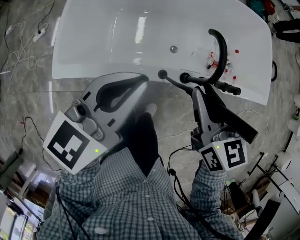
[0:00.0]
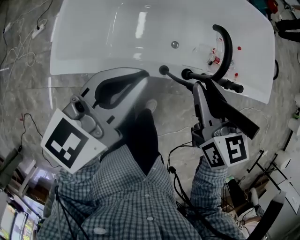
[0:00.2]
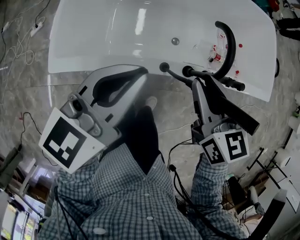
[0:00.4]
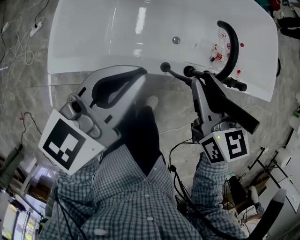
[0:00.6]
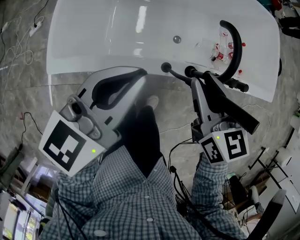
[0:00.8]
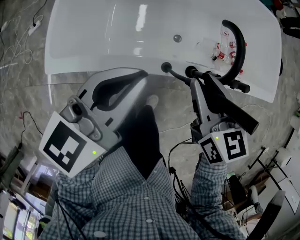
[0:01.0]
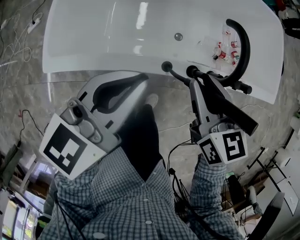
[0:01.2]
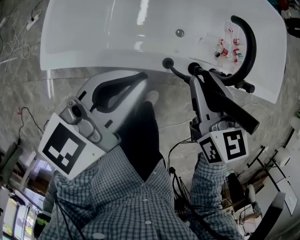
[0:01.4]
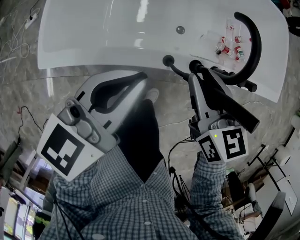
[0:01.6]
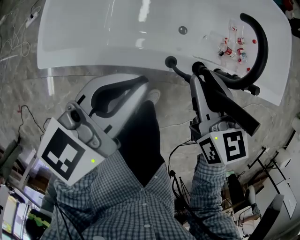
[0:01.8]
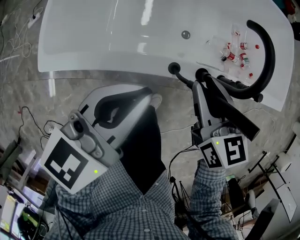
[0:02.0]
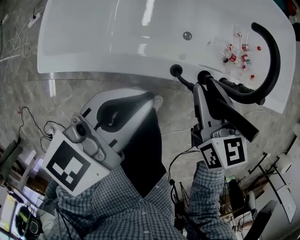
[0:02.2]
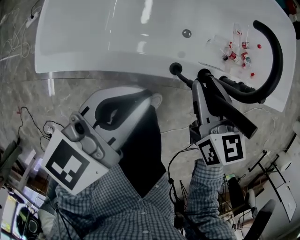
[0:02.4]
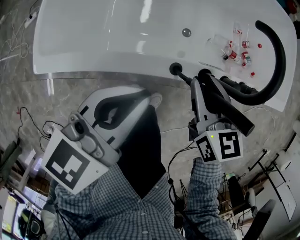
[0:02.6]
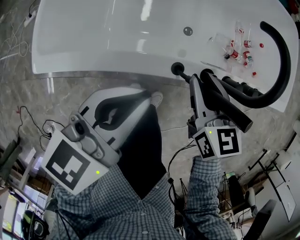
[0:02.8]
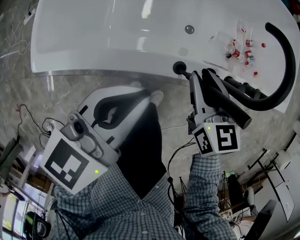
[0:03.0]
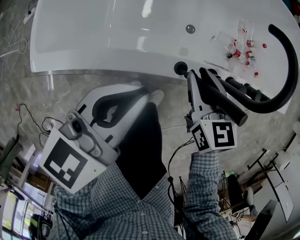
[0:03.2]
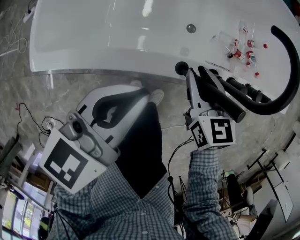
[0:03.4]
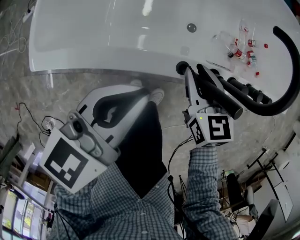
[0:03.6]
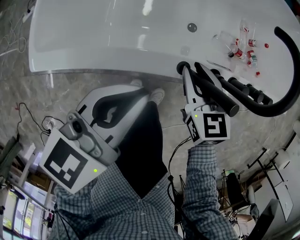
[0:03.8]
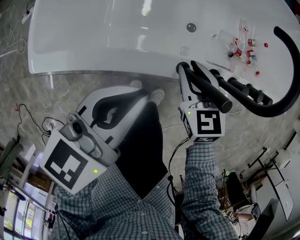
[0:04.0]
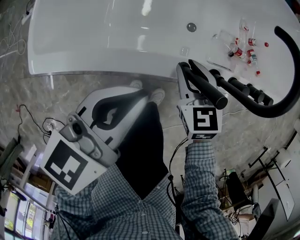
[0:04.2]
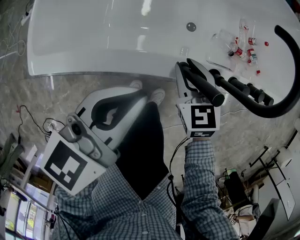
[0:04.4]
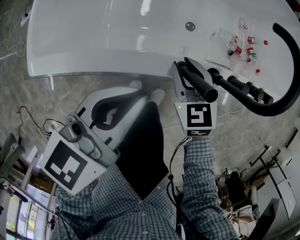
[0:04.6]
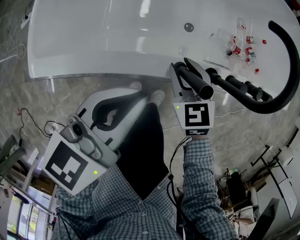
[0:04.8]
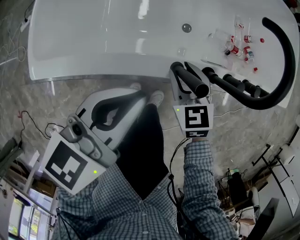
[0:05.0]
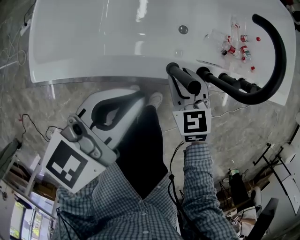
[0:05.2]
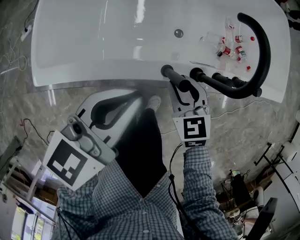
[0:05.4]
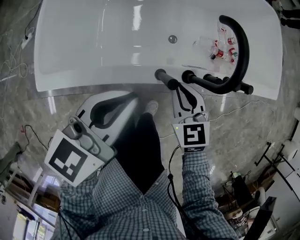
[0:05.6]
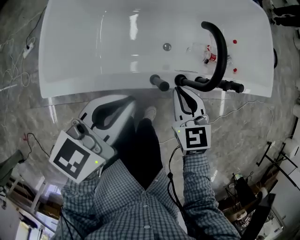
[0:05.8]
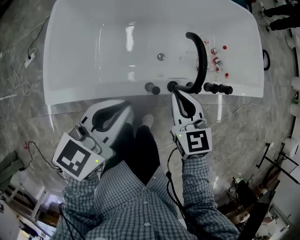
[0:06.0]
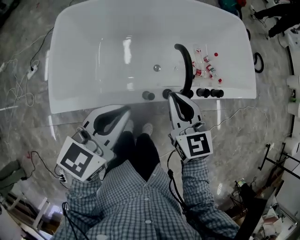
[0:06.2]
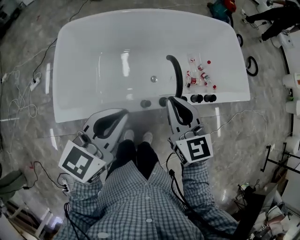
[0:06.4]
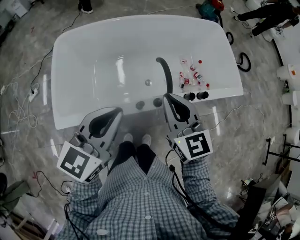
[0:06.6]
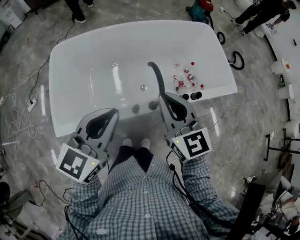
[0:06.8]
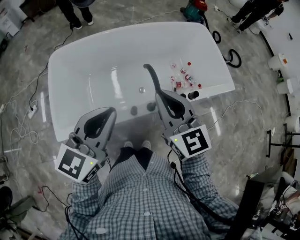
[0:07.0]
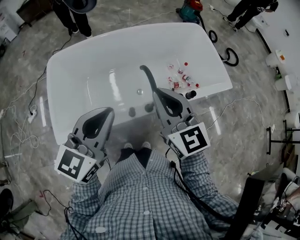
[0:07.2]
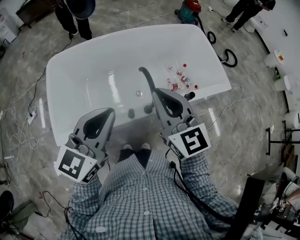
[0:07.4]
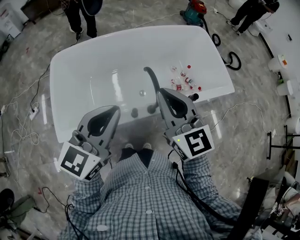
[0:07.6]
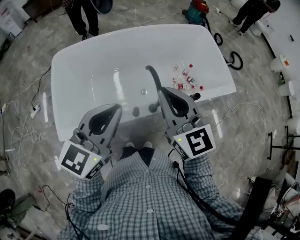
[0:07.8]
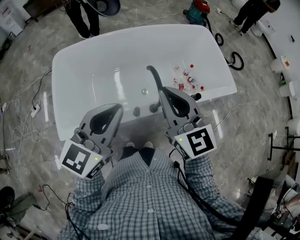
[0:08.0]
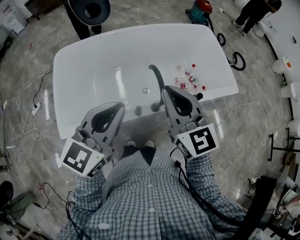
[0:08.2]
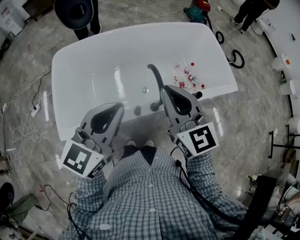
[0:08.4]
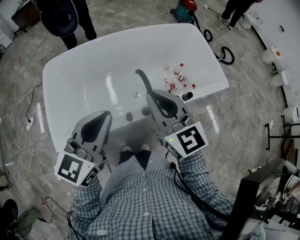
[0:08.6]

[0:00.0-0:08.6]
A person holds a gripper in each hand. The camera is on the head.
0:00.0 to 0:01.4: The two grippers go roughly 10 cm downward.
0:01.4 to 0:02.8: Both grippers travel together downward, roughly 10 cm.
0:02.8 to 0:04.4: The right gripper travels downward by approximately 10 cm.
0:04.4 to 0:05.8: The right gripper travels upward and to the right by approximately 15 cm; the left gripper moves upward, some 10 cm.
0:05.8 to 0:07.2: Both grippers move upward, some 30 cm. The right gripper swivels approximately 30 degrees.
0:07.2 to 0:08.6: The grippers make only small movements.

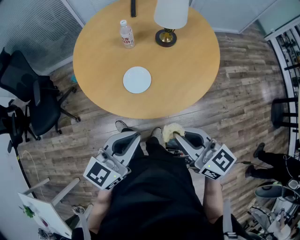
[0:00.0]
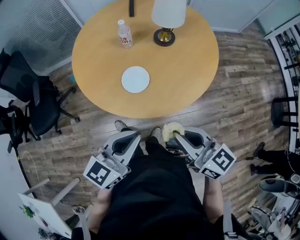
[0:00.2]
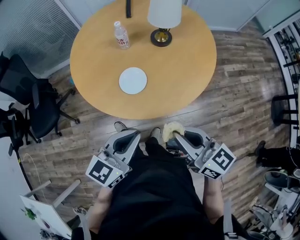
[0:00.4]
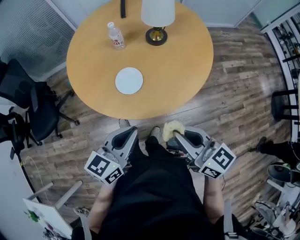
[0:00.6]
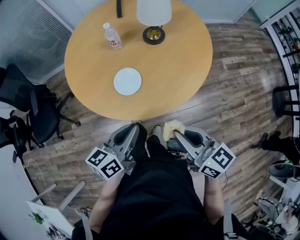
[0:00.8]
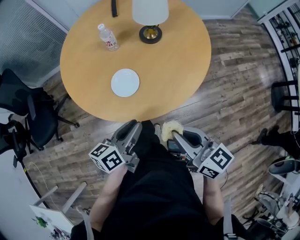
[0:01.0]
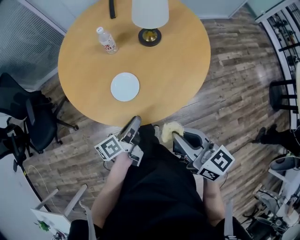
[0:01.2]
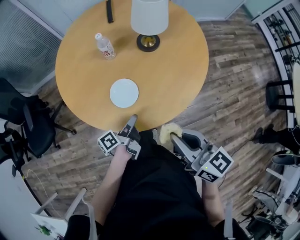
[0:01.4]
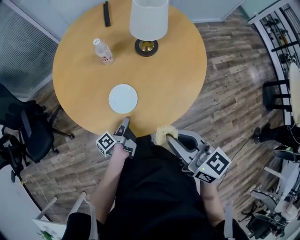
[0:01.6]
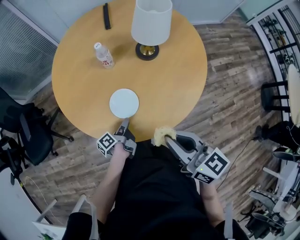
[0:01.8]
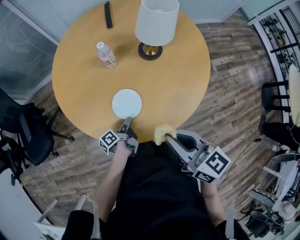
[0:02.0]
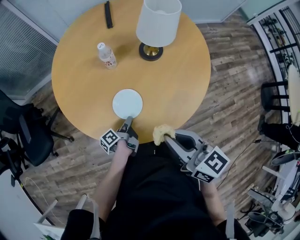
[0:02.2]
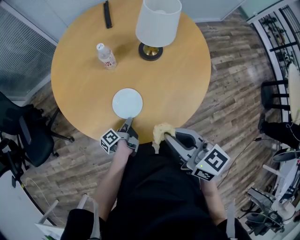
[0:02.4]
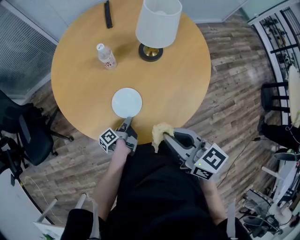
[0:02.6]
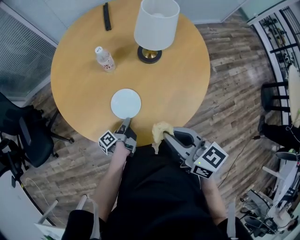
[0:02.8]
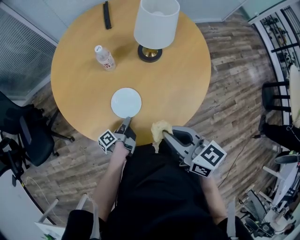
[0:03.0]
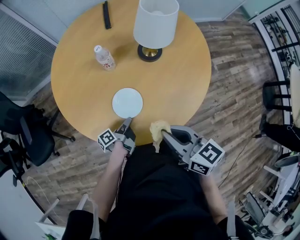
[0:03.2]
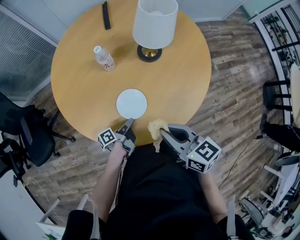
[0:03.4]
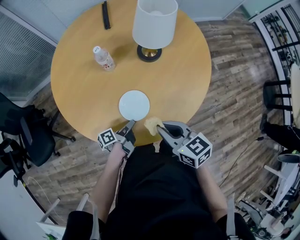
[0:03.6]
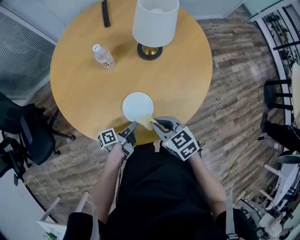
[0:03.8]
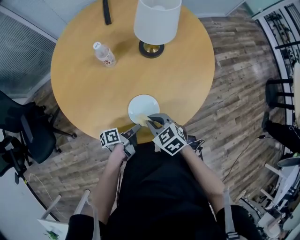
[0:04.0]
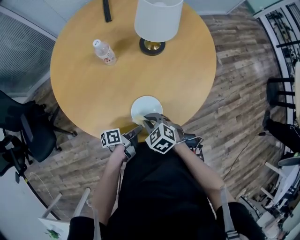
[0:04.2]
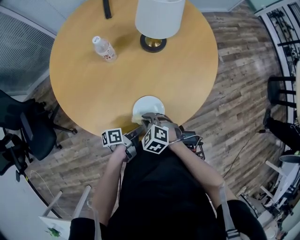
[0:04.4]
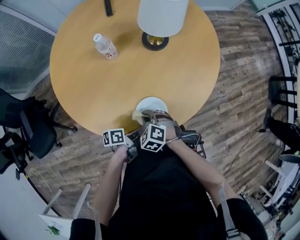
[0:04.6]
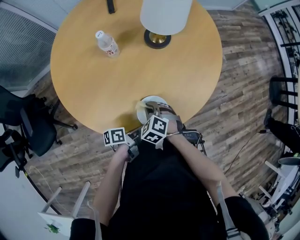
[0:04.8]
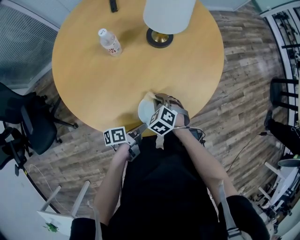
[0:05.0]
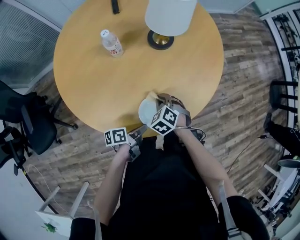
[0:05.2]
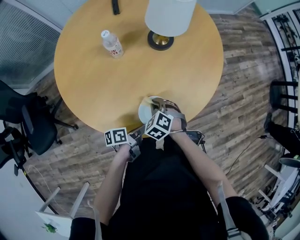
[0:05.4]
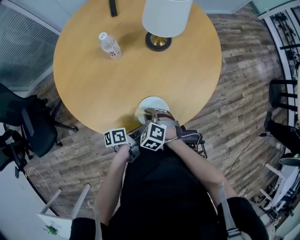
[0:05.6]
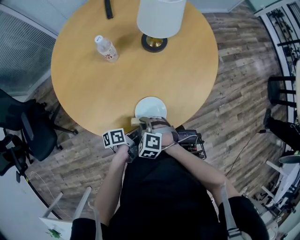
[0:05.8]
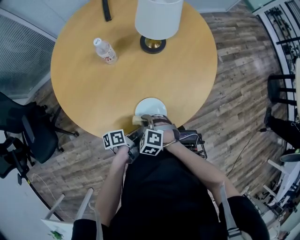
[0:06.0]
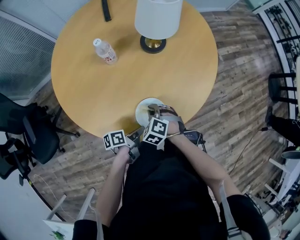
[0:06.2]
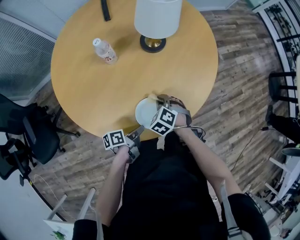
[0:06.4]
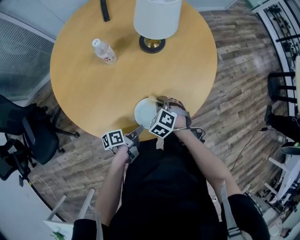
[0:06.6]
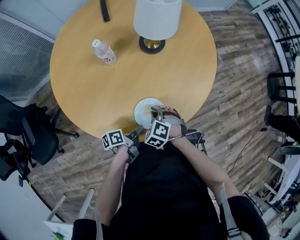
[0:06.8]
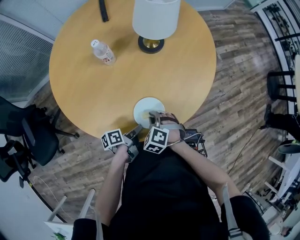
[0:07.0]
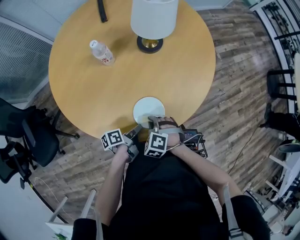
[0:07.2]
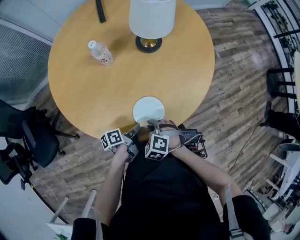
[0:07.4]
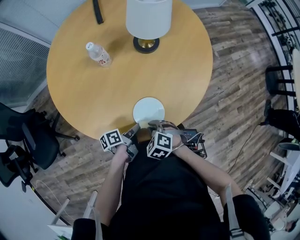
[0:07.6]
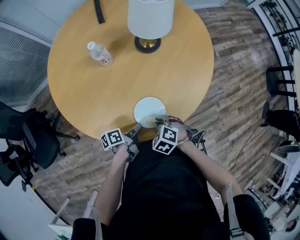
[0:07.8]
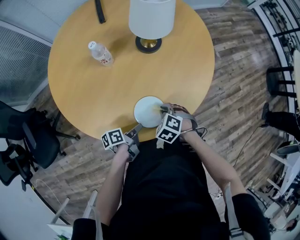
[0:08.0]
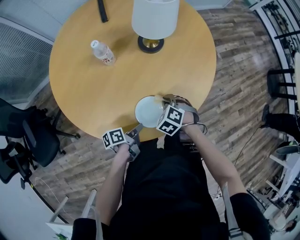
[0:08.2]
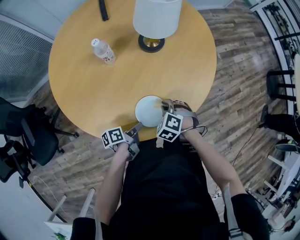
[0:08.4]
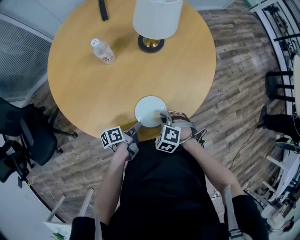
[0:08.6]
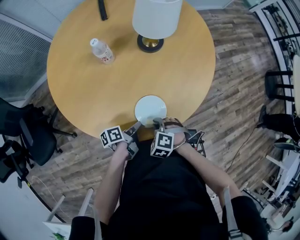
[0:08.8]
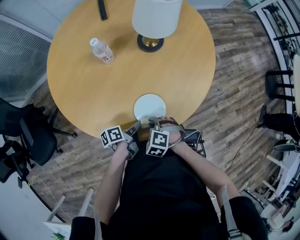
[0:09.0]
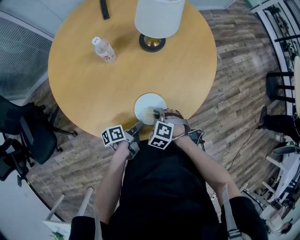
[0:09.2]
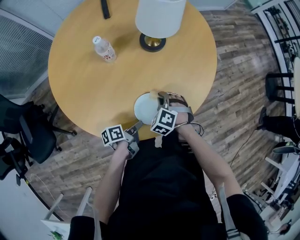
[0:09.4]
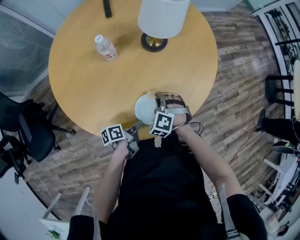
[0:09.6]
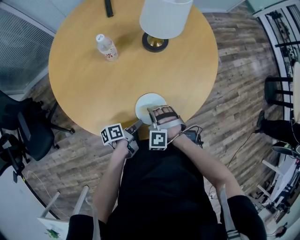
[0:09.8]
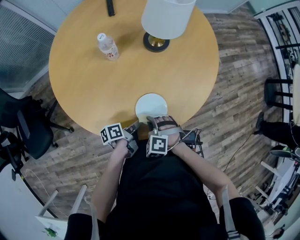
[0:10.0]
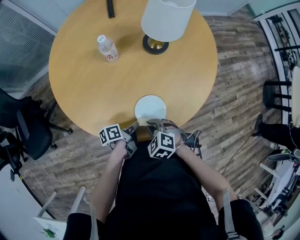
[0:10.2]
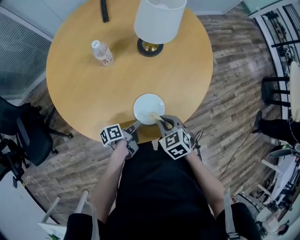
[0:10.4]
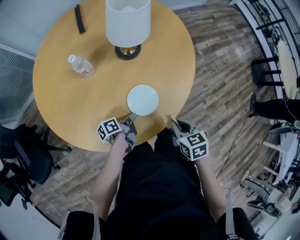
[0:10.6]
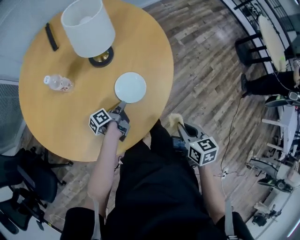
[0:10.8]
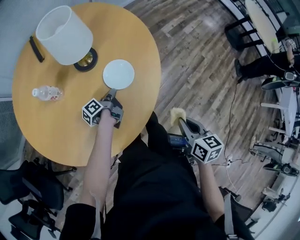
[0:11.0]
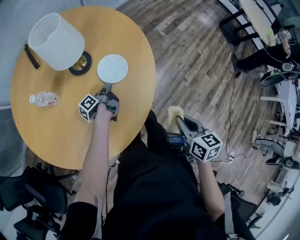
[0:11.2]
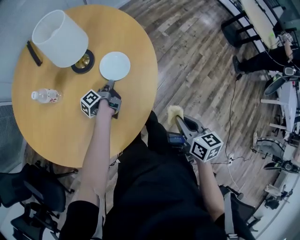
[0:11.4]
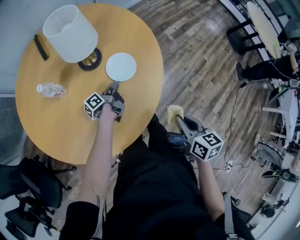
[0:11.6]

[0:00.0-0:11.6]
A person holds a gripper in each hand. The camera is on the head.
0:00.0 to 0:01.4: The right gripper shifts by about 5 cm.
0:01.4 to 0:02.8: The right gripper changes place by about 10 cm.
0:02.8 to 0:04.4: The right gripper shifts some 25 cm downward, and tips its fingers downward by roughly 40 degrees.
0:10.2 to 0:11.6: The right gripper moves some 30 cm, and twists some 80 degrees clockwise, seen from behind.

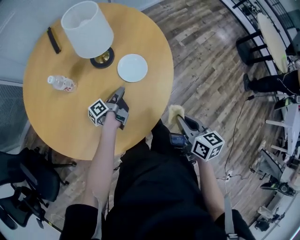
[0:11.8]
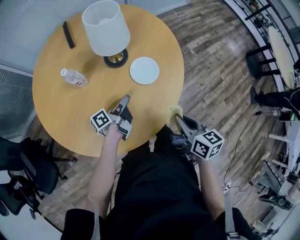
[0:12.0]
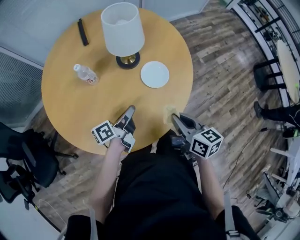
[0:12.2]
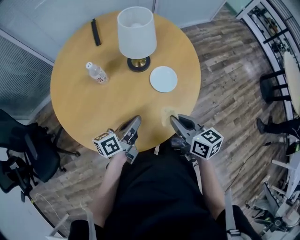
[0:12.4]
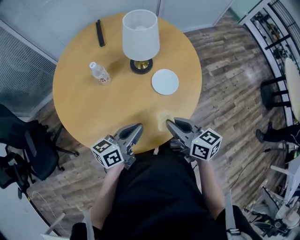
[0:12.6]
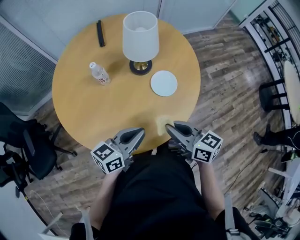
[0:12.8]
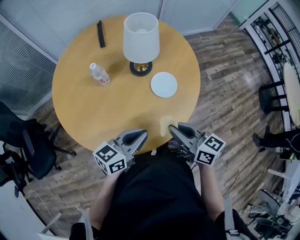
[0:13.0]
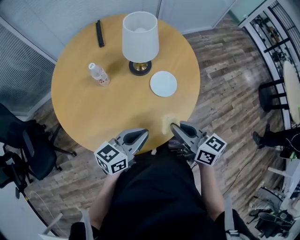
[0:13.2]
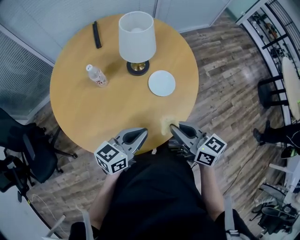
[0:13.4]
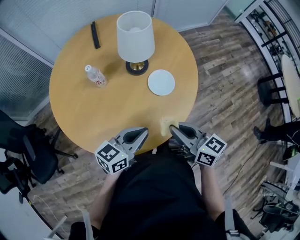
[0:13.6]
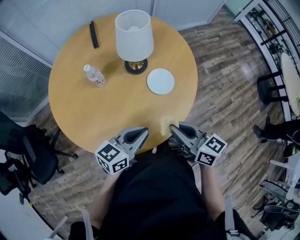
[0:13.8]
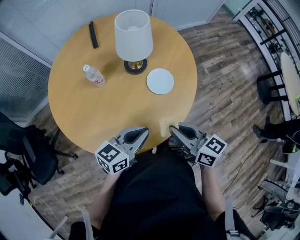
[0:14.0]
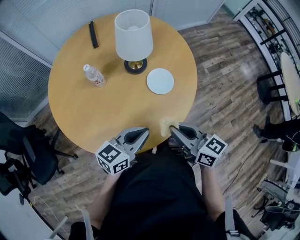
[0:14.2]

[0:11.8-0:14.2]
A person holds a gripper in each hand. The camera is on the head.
0:11.8 to 0:13.0: The right gripper moves approximately 15 cm, and changes its angle by about 40 degrees.

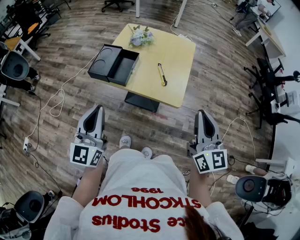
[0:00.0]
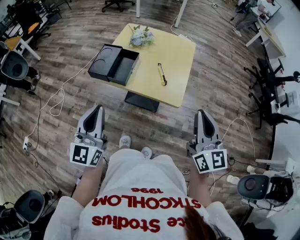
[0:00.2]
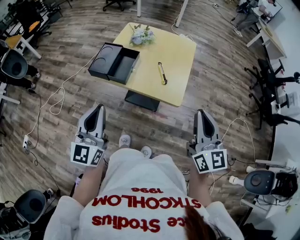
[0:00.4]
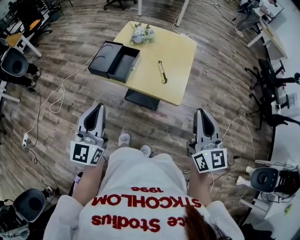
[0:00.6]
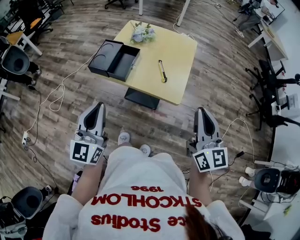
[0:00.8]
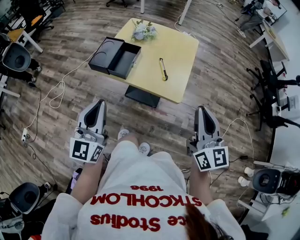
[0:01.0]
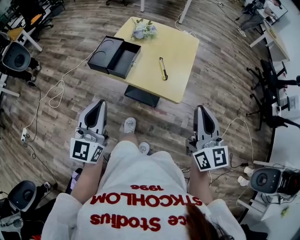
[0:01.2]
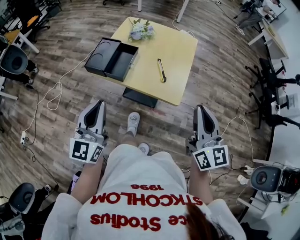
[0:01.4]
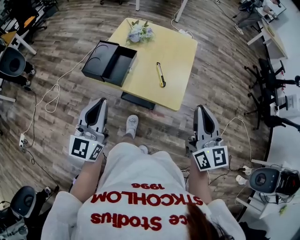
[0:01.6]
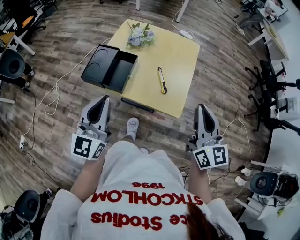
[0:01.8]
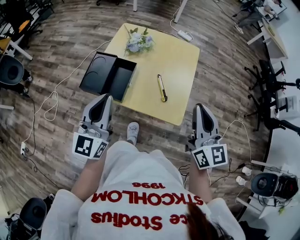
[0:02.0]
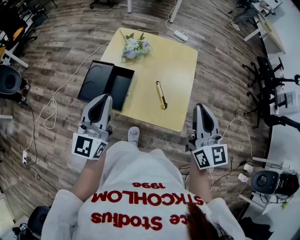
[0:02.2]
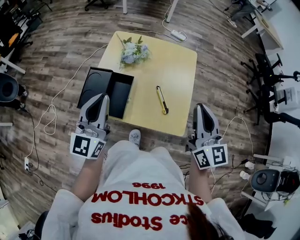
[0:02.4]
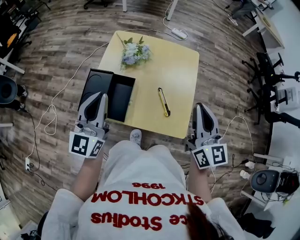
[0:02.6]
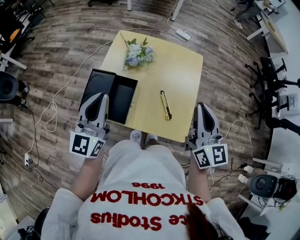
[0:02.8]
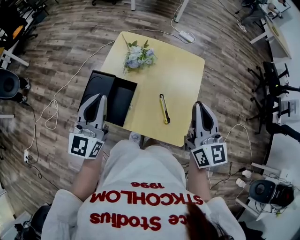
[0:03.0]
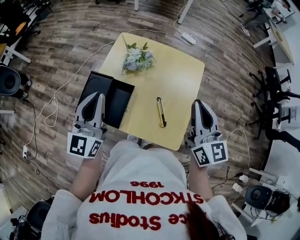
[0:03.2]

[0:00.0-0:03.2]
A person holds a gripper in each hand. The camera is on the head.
0:00.0 to 0:01.6: The left gripper moves forward, roughly 5 cm.
0:01.6 to 0:03.2: Both grippers move forward, approximately 25 cm.
